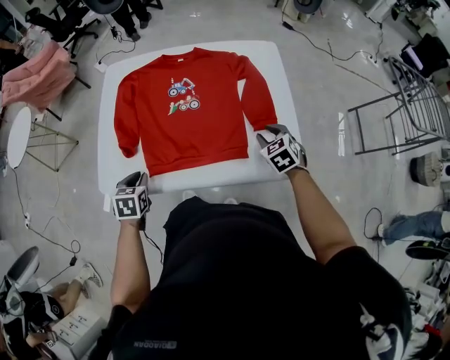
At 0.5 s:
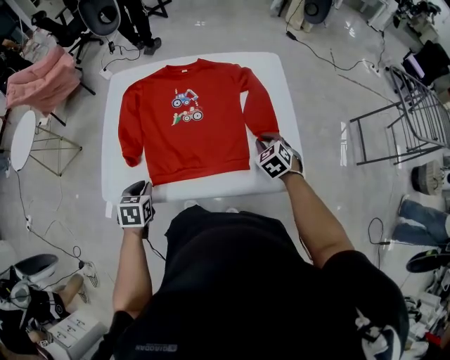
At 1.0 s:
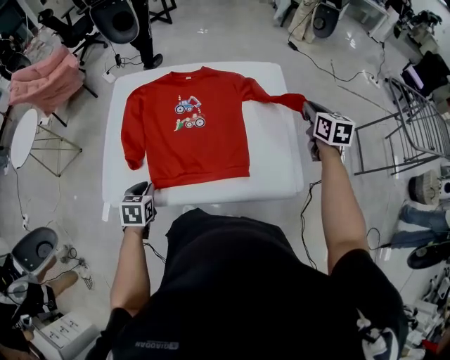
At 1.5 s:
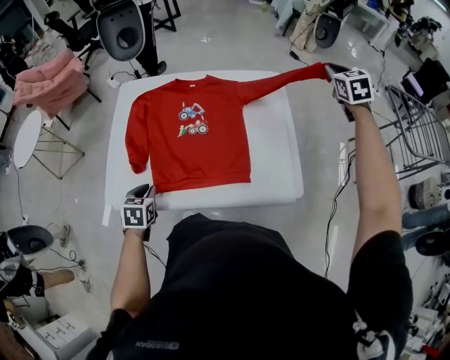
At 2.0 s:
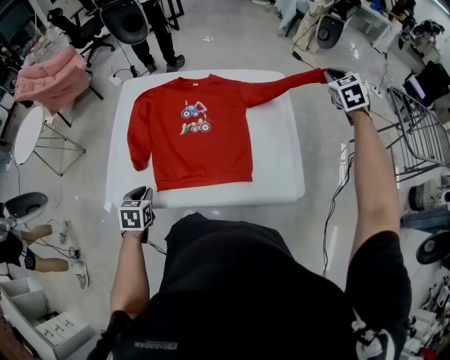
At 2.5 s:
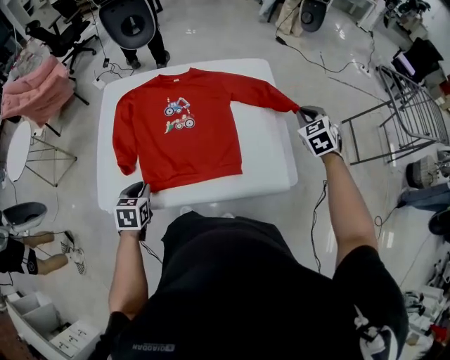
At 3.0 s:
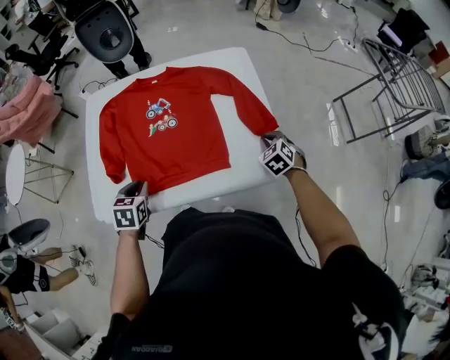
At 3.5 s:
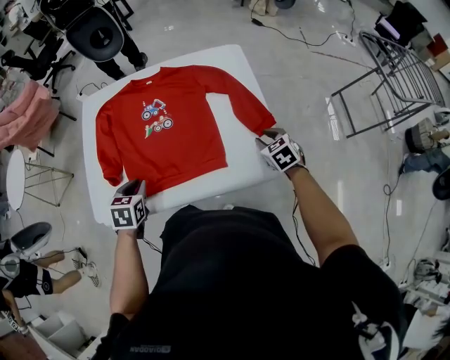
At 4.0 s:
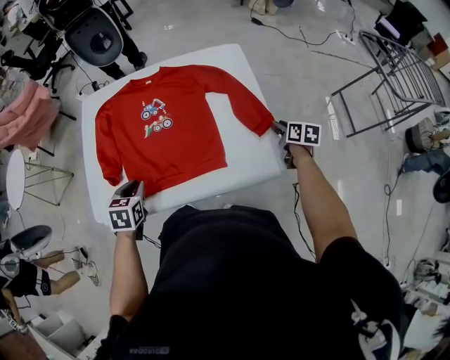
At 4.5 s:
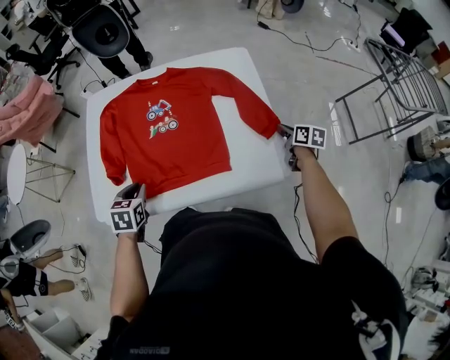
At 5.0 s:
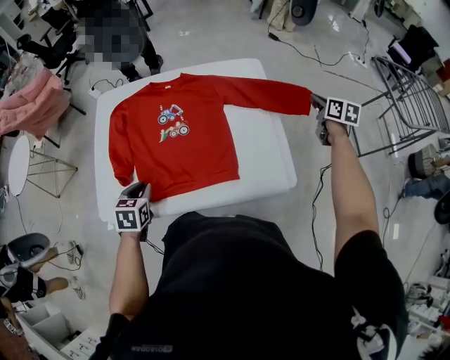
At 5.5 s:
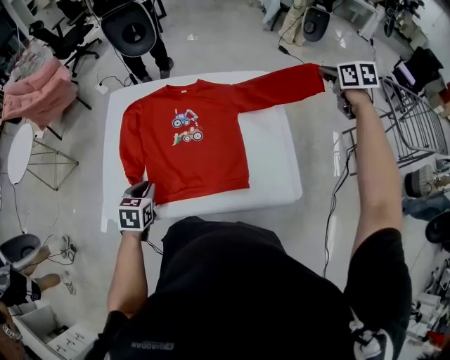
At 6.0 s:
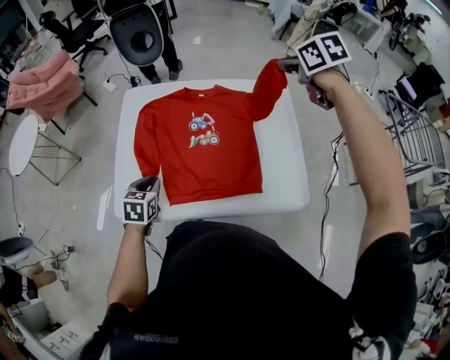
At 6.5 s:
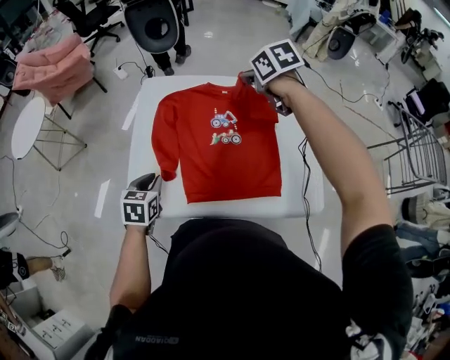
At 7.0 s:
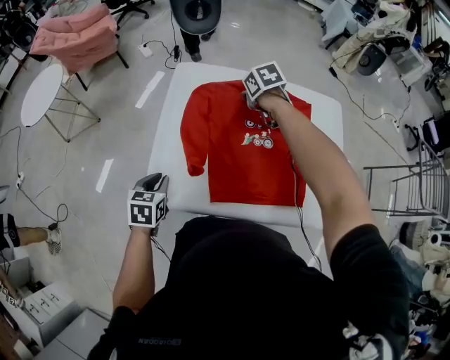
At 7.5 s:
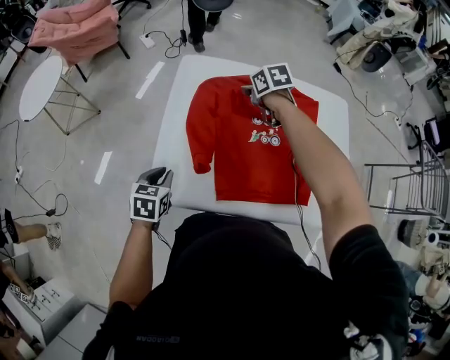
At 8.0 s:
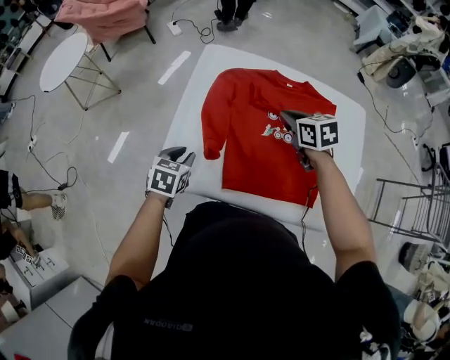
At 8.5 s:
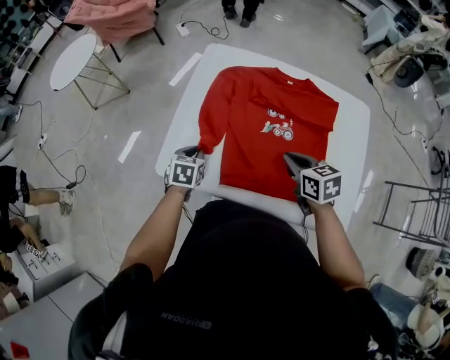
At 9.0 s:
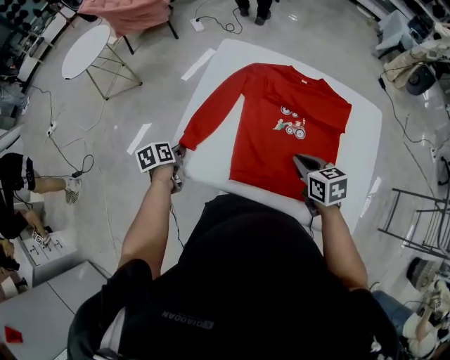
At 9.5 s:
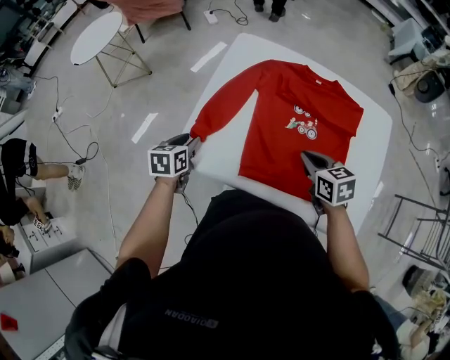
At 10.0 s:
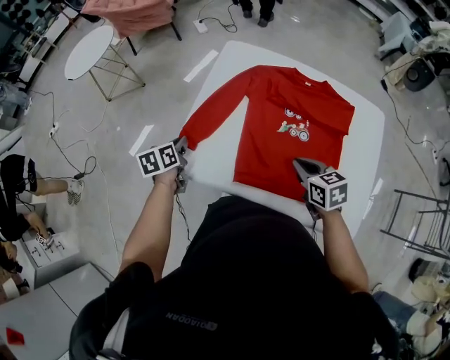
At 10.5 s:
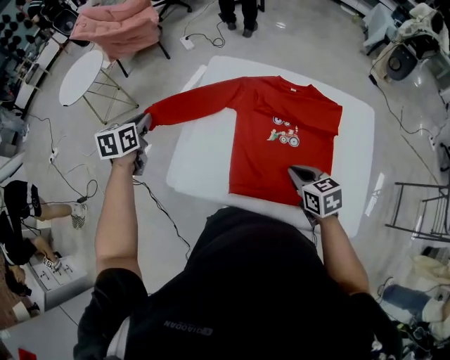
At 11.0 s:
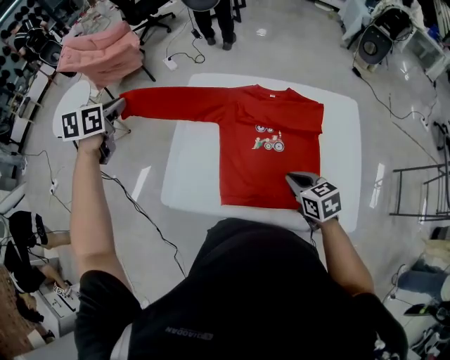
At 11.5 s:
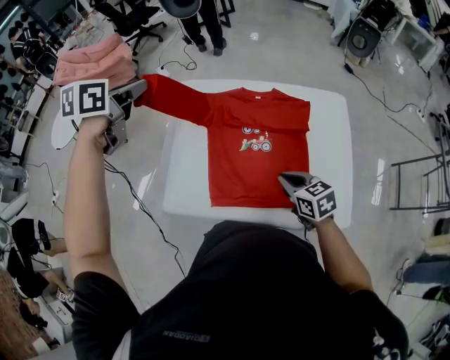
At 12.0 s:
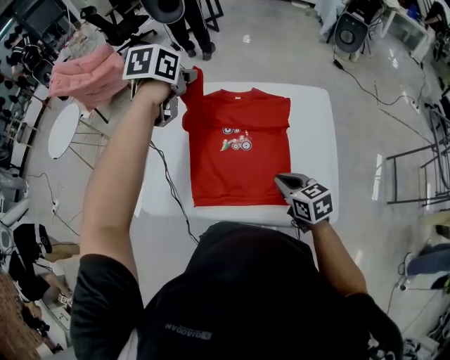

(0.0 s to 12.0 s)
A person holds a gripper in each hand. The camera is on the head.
0.0 s - 2.0 s: The right gripper moves upward, forward and to the right, some 35 cm, swivels roughly 20 degrees, and closes its fingers.
2.0 s - 4.0 s: The right gripper travels downward and backward by approximately 35 cm, rolls clockwise, seen from behind, by roughly 70 degrees, and opens; the left gripper heads to the right and forward, covering some 10 cm.
4.0 s - 6.0 s: The left gripper goes approximately 5 cm to the left, while the right gripper heads upward, to the left and forward, covering approximately 50 cm, rolls counterclockwise, seen from behind, by approximately 40 degrees, and closes its fingers.
6.0 s - 8.0 s: The right gripper moves to the left and downward, roughly 30 cm; the left gripper travels to the left by roughly 10 cm.
8.0 s - 10.0 s: The right gripper travels backward by about 15 cm. The left gripper travels to the left by some 10 cm, and swivels about 40 degrees.
10.0 s - 12.0 s: The right gripper is displaced to the right and backward by approximately 15 cm; the left gripper moves to the right, upward and forward, approximately 50 cm, and rotates approximately 40 degrees.

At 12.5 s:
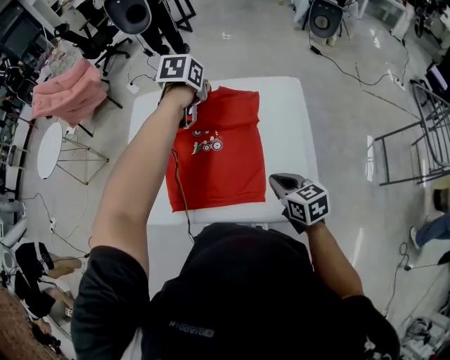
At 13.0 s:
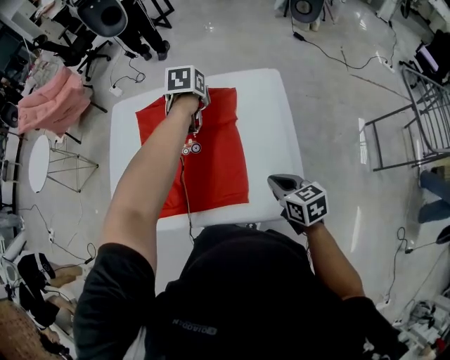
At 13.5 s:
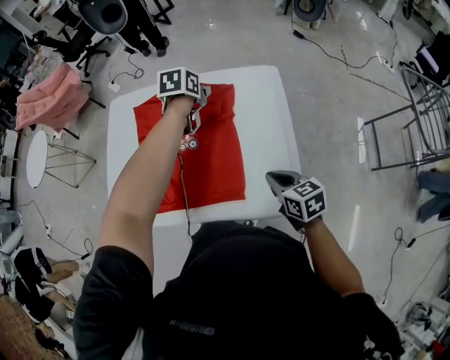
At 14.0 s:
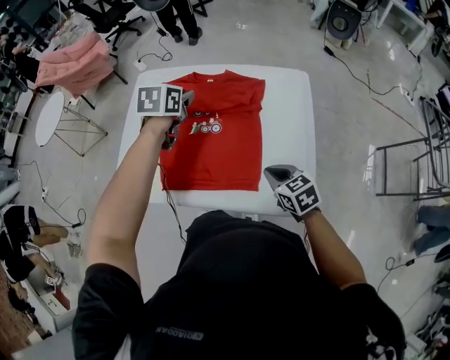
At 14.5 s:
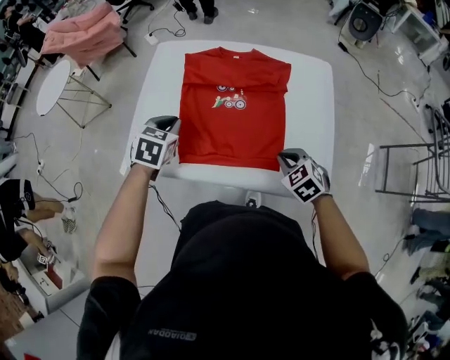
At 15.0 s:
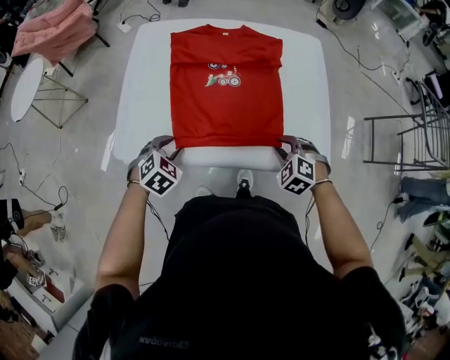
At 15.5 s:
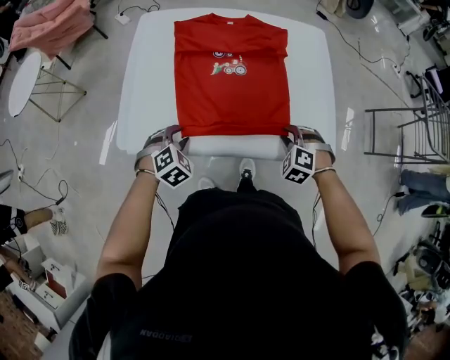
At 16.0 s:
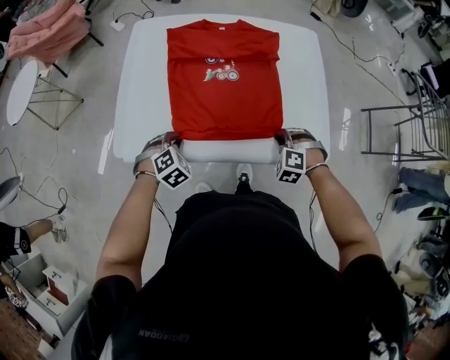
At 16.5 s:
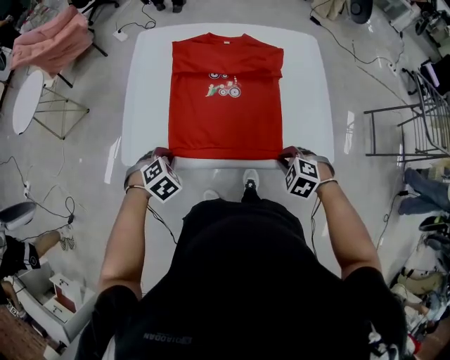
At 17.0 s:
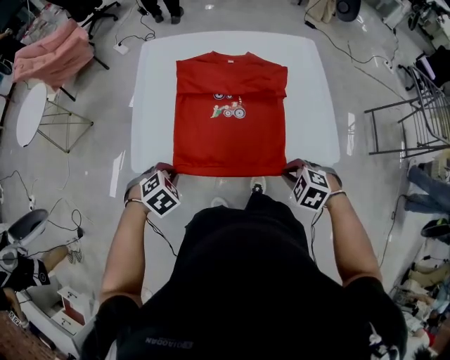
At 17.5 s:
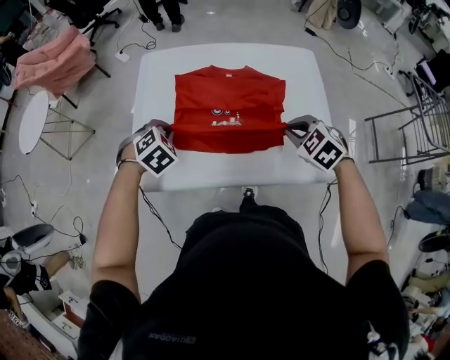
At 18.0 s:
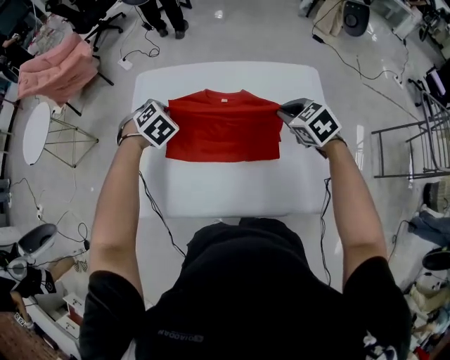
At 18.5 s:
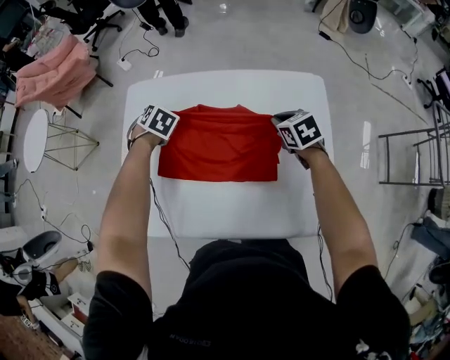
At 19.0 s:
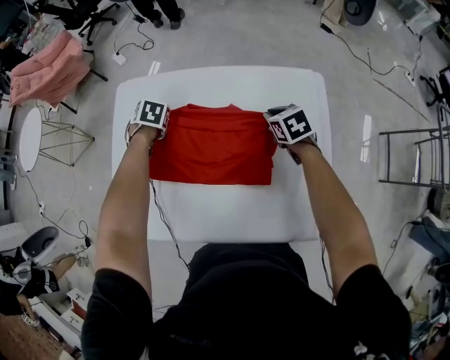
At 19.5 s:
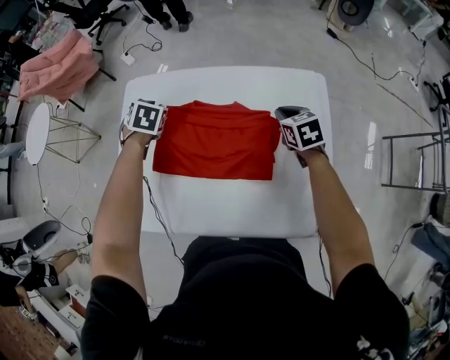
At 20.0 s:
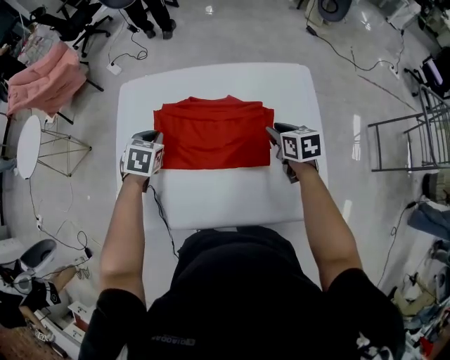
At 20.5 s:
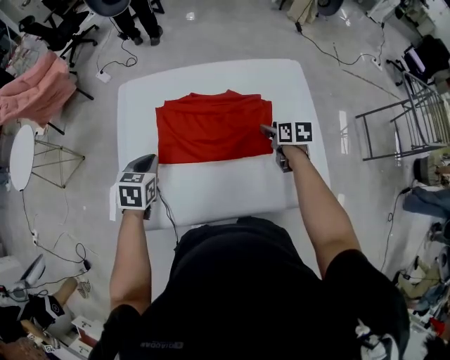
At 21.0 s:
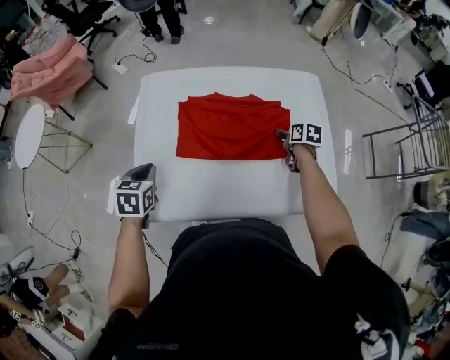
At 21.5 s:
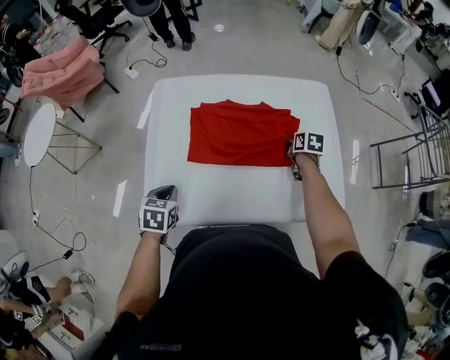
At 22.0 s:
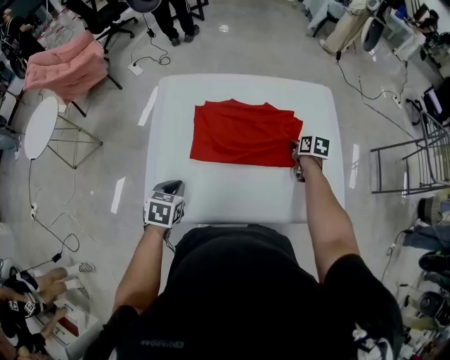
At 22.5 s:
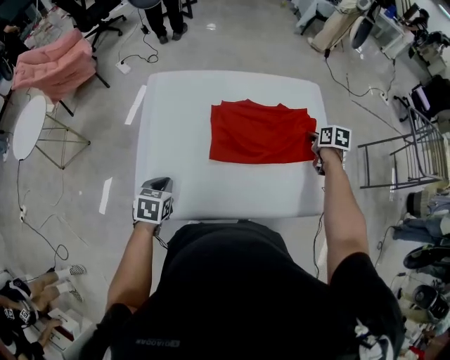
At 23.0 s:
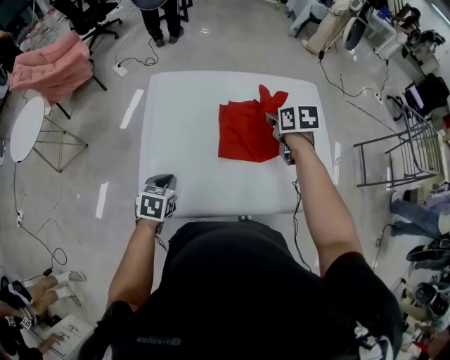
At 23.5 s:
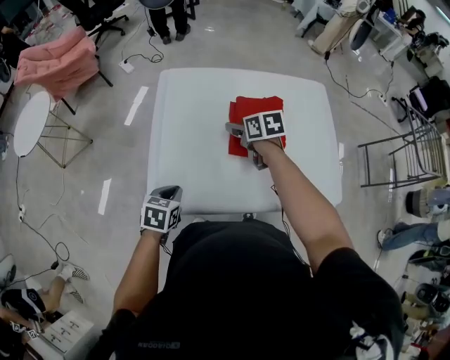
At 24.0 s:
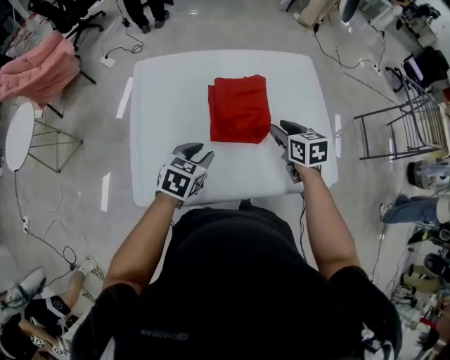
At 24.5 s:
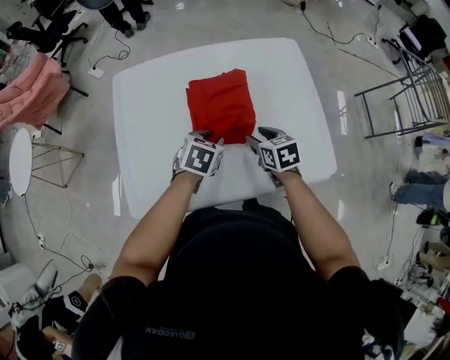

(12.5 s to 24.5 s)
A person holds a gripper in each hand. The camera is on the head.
12.5 s - 14.5 s: The right gripper shifts about 5 cm downward, and changes its angle by about 40 degrees. The left gripper shifts about 30 cm backward, to the left and downward, changes its angle by approximately 20 degrees, and opens and closes again.
14.5 s - 16.5 s: The left gripper travels downward, backward and to the left by approximately 20 cm, swivels approximately 40 degrees, and opens, then closes once more; the right gripper moves backward, roughly 10 cm, changes its angle by roughly 30 degrees, and opens and closes again.
16.5 s - 18.5 s: Both grippers move forward, about 35 cm. The right gripper twists approximately 40 degrees clockwise, seen from behind. The left gripper rotates roughly 20 degrees.
18.5 s - 20.5 s: The left gripper is displaced backward and to the left by some 20 cm, and changes its angle by roughly 30 degrees. Meanwhile the right gripper heads backward, covering some 10 cm, rotates approximately 30 degrees, and opens up.
20.5 s - 22.5 s: The right gripper heads to the right, covering about 10 cm, and closes its fingers. Meanwhile the left gripper heads backward and downward, covering roughly 10 cm.
22.5 s - 24.5 s: The right gripper goes some 20 cm to the left and backward, and opens its fingers; the left gripper shifts approximately 25 cm to the right and forward, swivels some 20 degrees, and opens its fingers.

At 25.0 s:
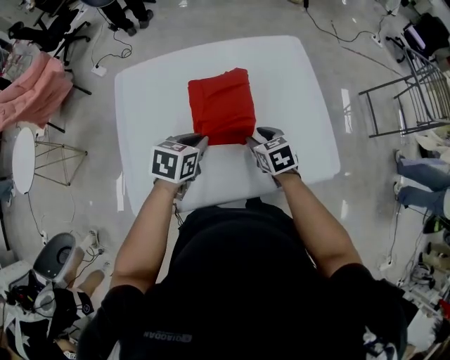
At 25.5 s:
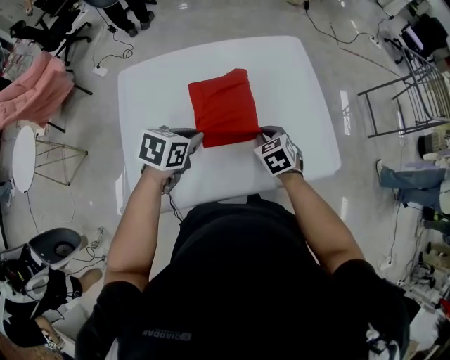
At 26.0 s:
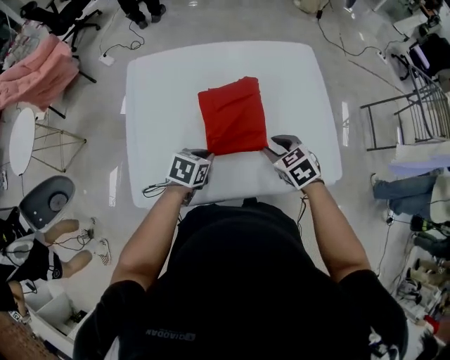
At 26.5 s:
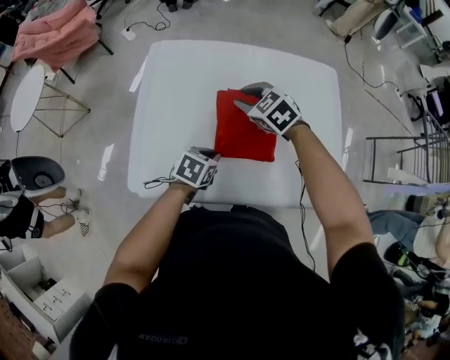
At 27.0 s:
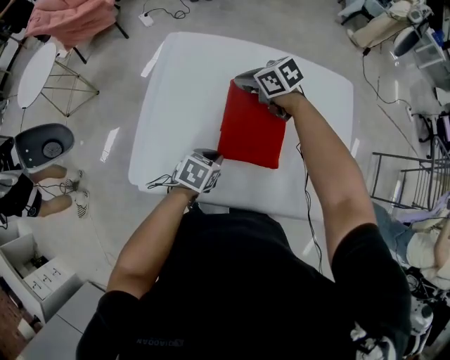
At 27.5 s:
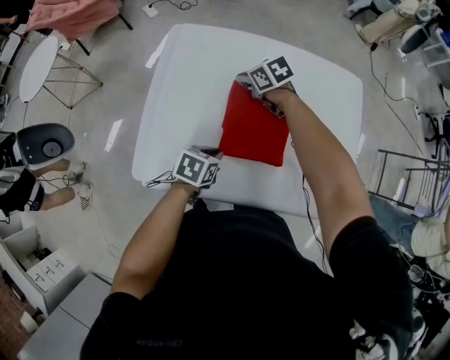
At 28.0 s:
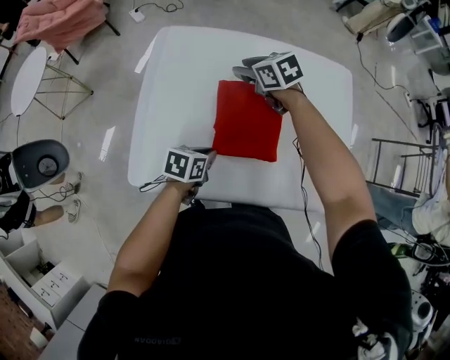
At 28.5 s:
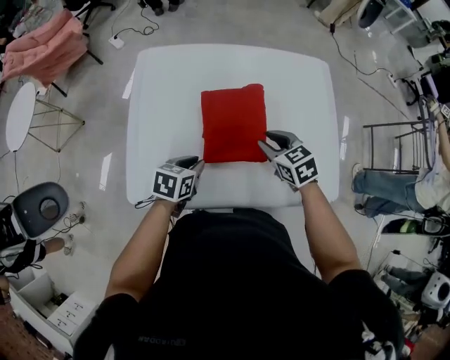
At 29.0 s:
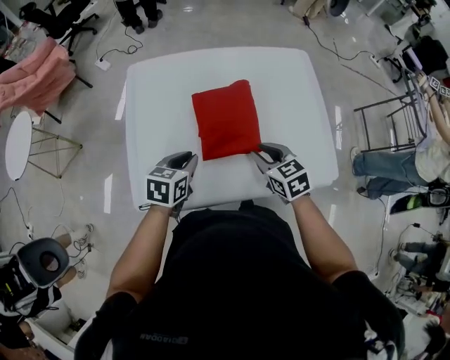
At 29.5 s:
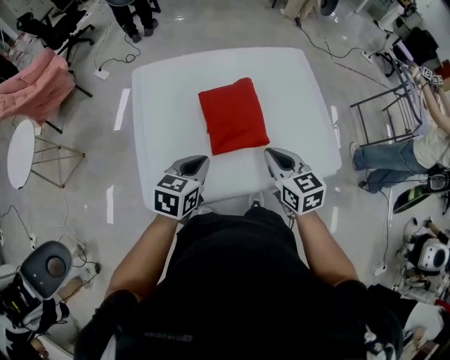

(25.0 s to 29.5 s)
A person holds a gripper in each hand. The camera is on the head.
25.0 s - 27.0 s: The right gripper shifts by some 25 cm, swivels roughly 40 degrees, and closes up. The left gripper heads downward, covering roughly 10 cm.
27.0 s - 29.5 s: The right gripper ends up roughly 30 cm from where it was, turns by roughly 50 degrees, and opens and closes again, while the left gripper is displaced upward by approximately 15 cm, and rotates some 20 degrees.
